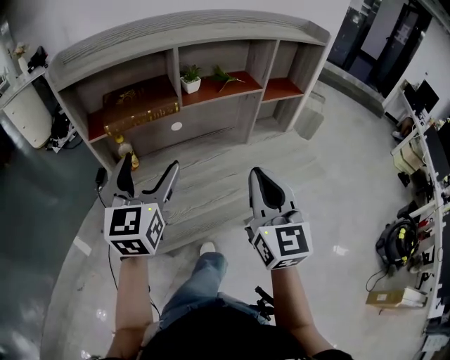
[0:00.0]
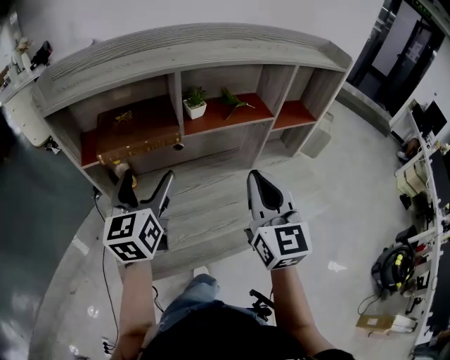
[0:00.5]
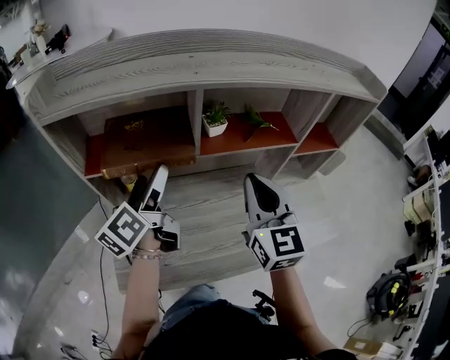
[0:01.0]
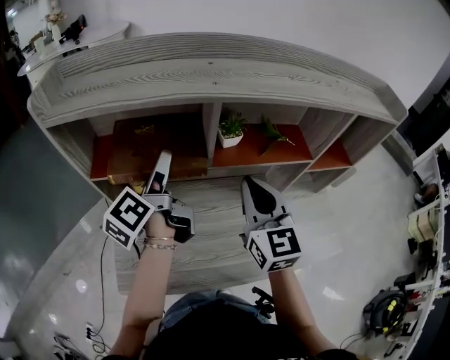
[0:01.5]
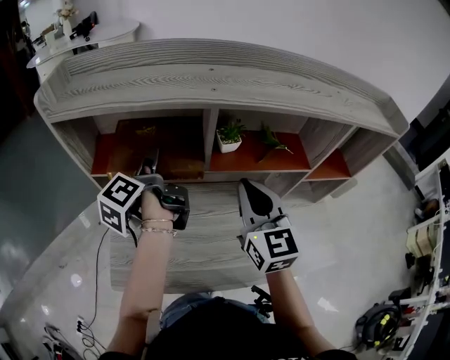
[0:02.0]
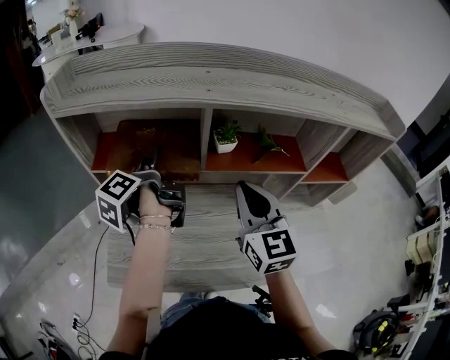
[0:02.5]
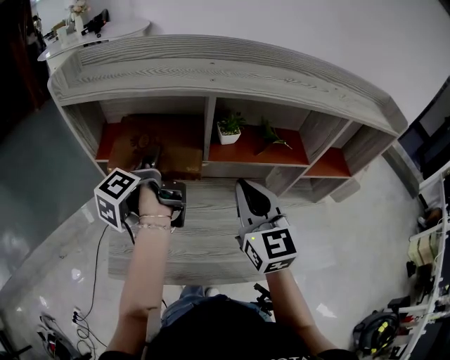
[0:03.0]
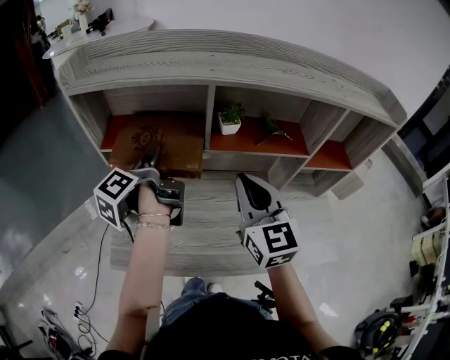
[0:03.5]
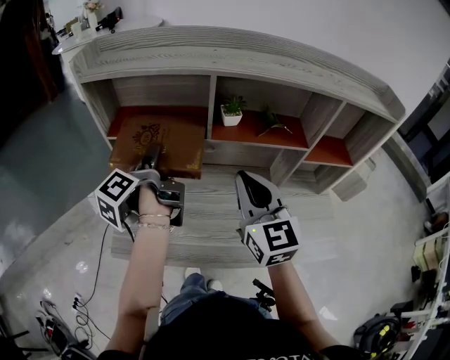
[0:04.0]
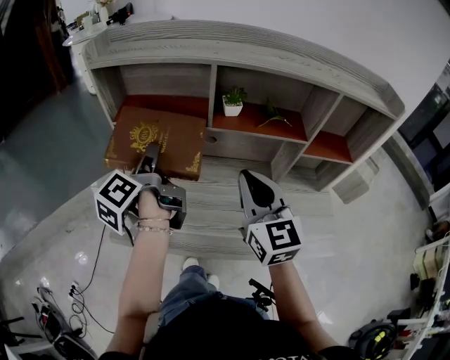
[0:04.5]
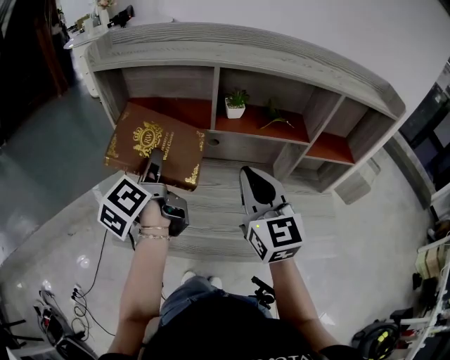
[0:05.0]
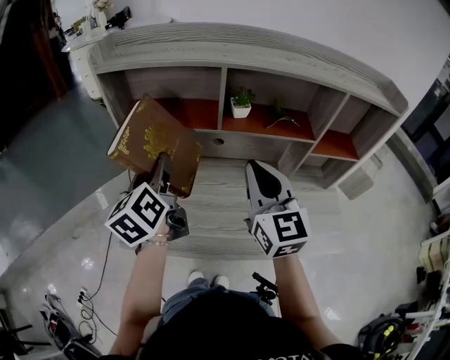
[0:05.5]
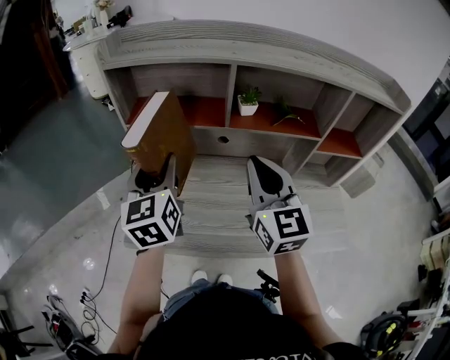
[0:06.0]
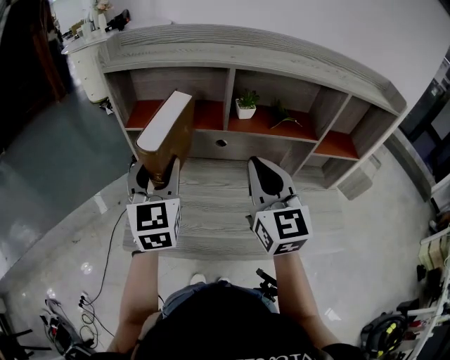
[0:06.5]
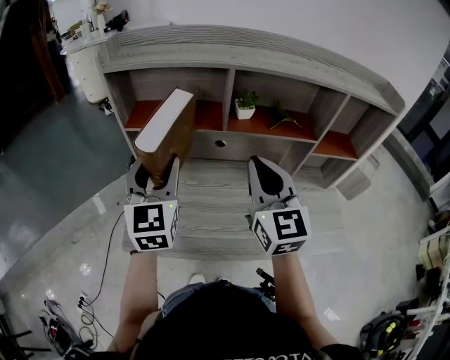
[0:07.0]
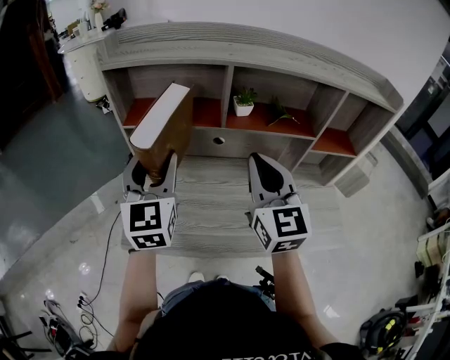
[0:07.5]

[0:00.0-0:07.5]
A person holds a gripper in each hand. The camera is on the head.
0:00.0 to 0:02.0: The left gripper moves some 25 cm, and rolls counterclockwise, seen from behind, by some 80 degrees. Meanwhile the right gripper ends up roughly 25 cm from where it was, and changes its angle by roughly 20 degrees.
0:02.0 to 0:04.0: Both grippers travel together backward, some 10 cm. The left gripper closes up.
0:04.0 to 0:05.5: The left gripper heads backward, covering about 5 cm, and rolls clockwise, seen from behind, by roughly 50 degrees.
0:05.5 to 0:07.5: The left gripper twists roughly 40 degrees clockwise, seen from behind.

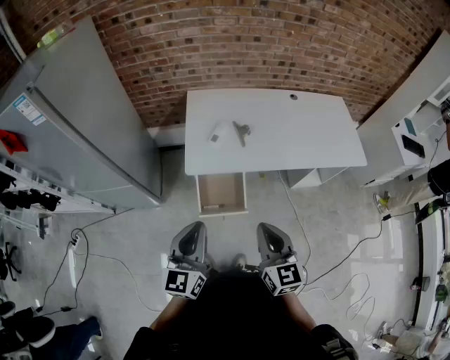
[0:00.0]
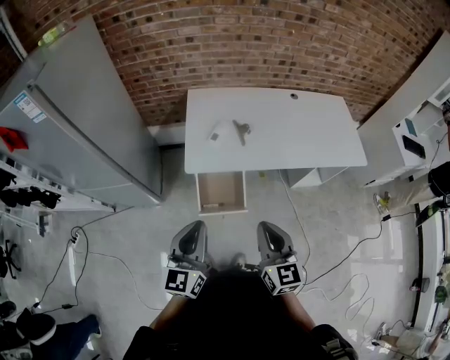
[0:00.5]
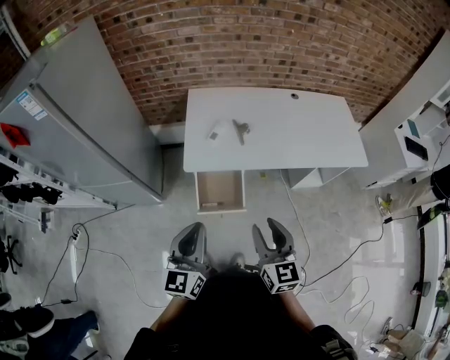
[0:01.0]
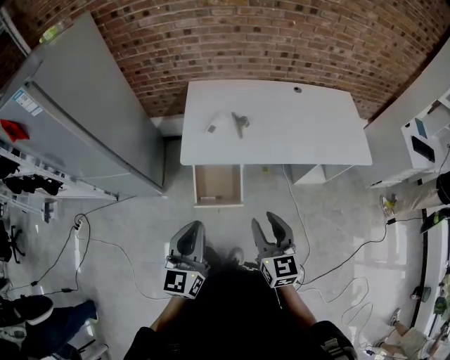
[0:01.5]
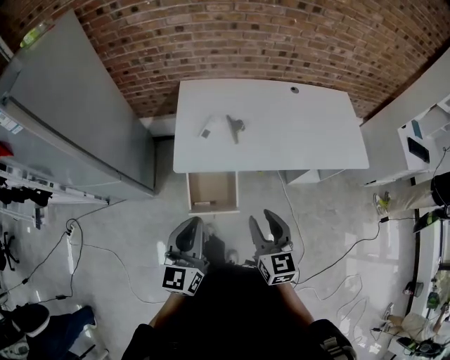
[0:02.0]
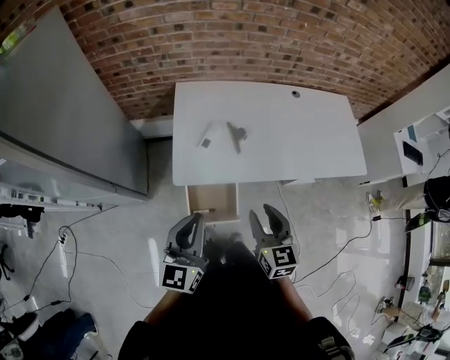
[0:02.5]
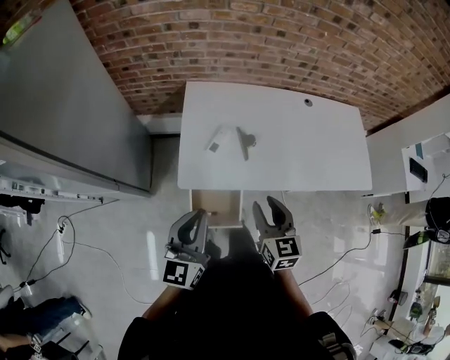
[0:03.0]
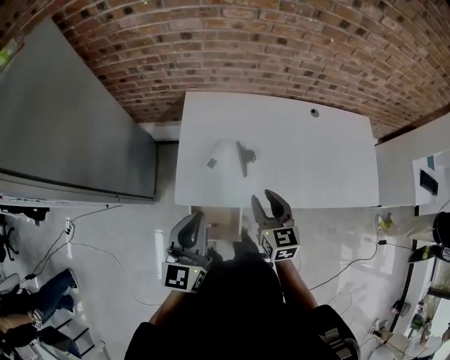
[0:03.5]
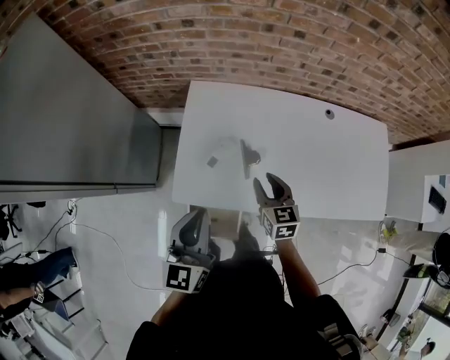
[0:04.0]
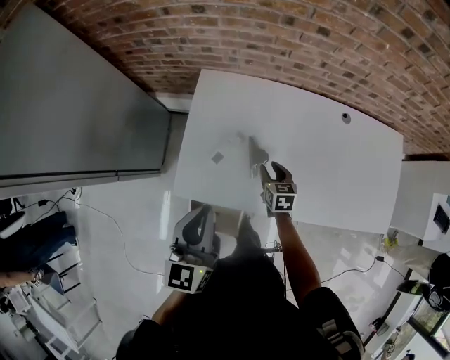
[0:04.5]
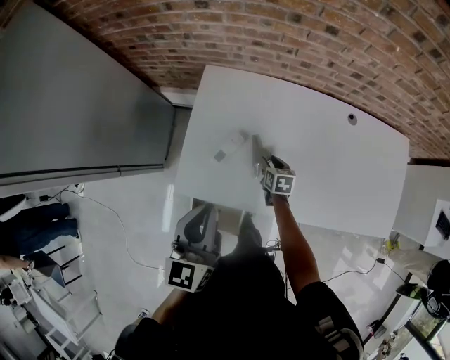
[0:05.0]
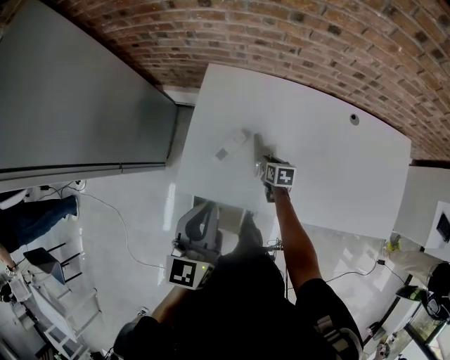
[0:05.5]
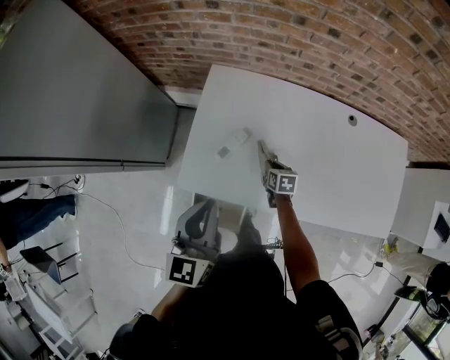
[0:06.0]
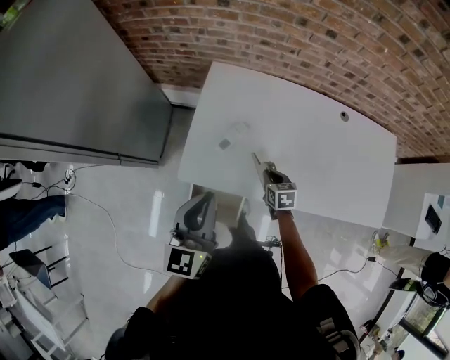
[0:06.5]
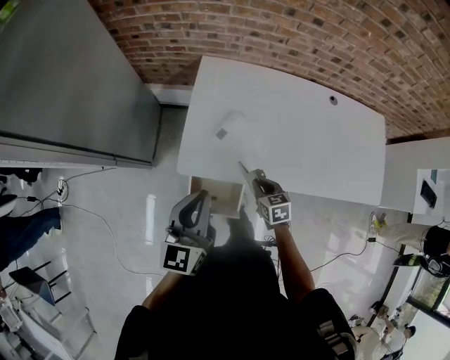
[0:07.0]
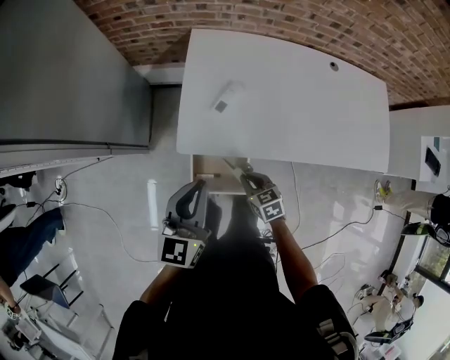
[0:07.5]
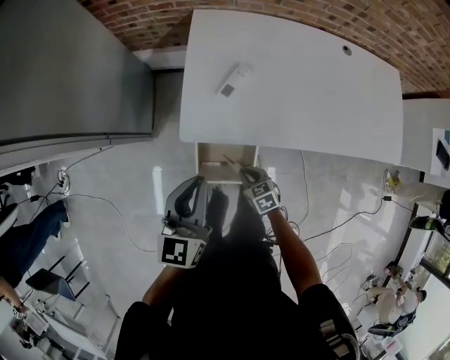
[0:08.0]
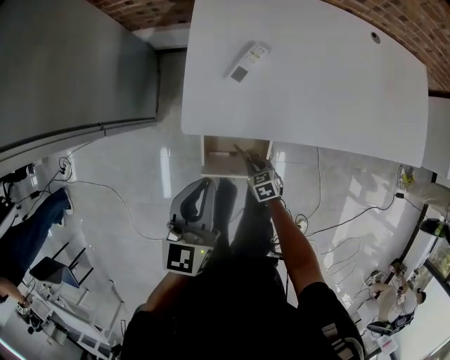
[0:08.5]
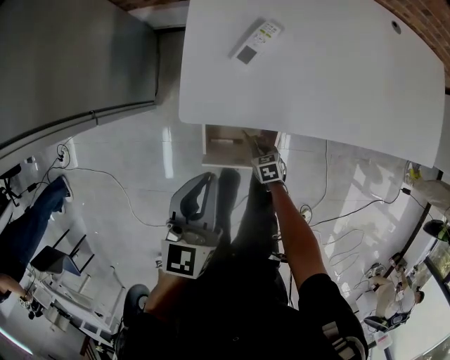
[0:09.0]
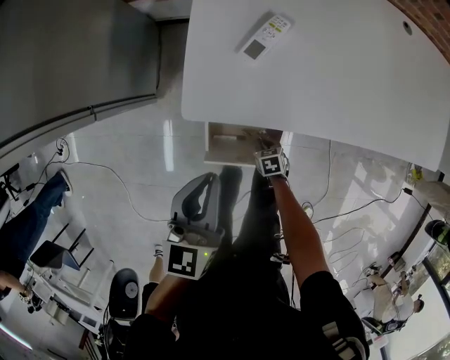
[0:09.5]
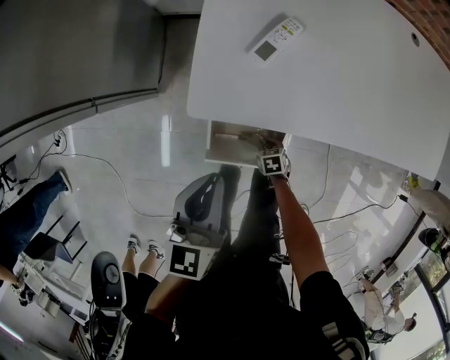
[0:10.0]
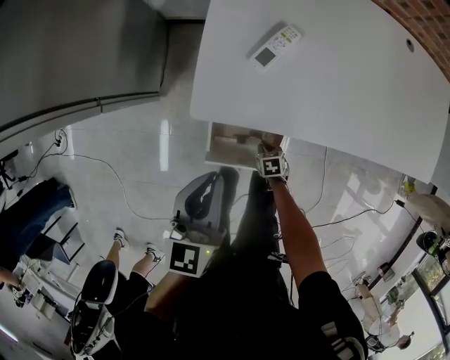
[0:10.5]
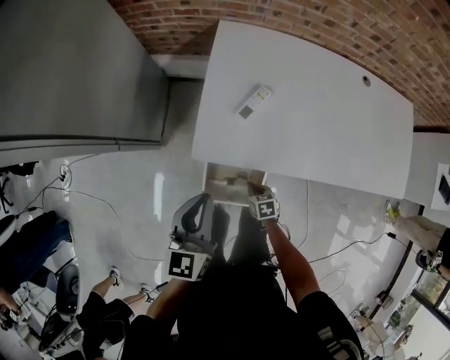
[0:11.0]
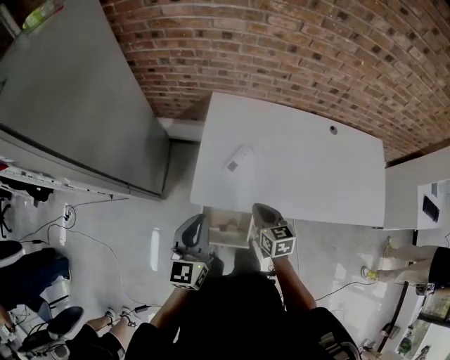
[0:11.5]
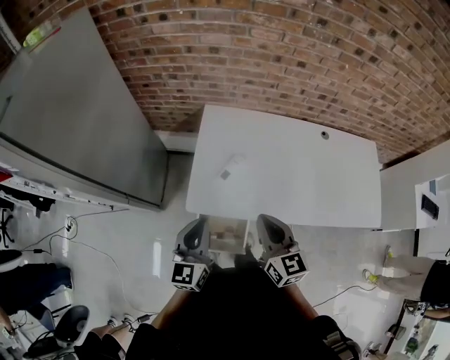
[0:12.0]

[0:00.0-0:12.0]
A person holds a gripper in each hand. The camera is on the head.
0:00.0 to 0:02.0: The left gripper heads to the right and forward, covering approximately 5 cm. The right gripper is displaced forward and to the right by about 10 cm, and opens up.
0:02.0 to 0:04.0: Both grippers move forward, about 30 cm.
0:04.0 to 0:06.0: The right gripper heads downward, covering about 20 cm, turns by some 30 degrees, and closes up.
0:06.0 to 0:08.0: The left gripper goes some 15 cm to the left, backward and downward. The right gripper is displaced backward and to the left by approximately 30 cm, and changes its angle by roughly 20 degrees.
0:08.0 to 0:10.0: The right gripper heads downward, covering some 25 cm, and swivels approximately 20 degrees; the left gripper is displaced downward by about 15 cm.
0:10.0 to 0:12.0: The right gripper goes roughly 60 cm upward, and angles its fingers upward, by some 60 degrees, while the left gripper shifts roughly 20 cm upward.

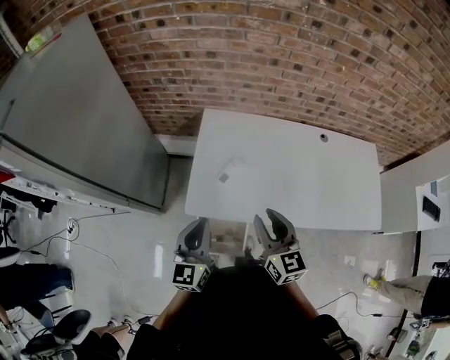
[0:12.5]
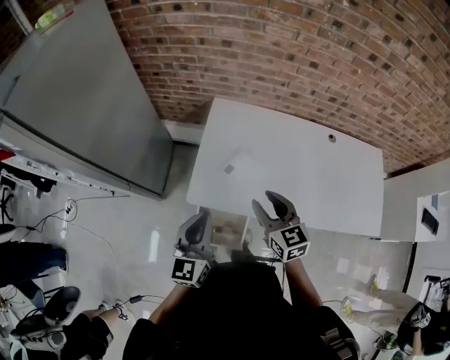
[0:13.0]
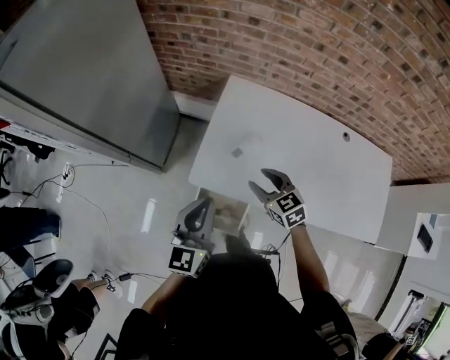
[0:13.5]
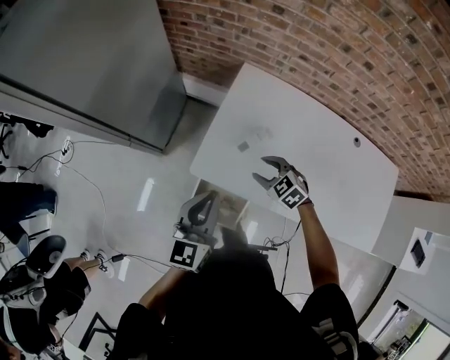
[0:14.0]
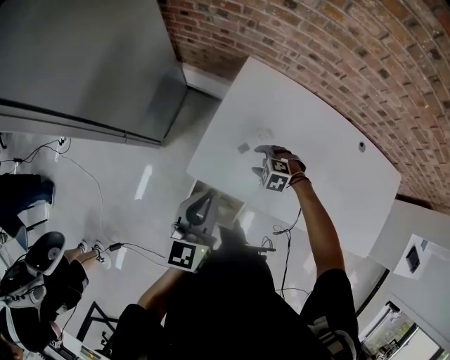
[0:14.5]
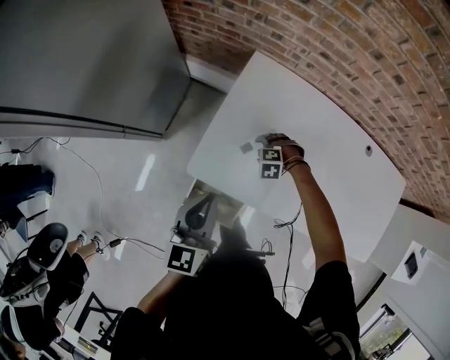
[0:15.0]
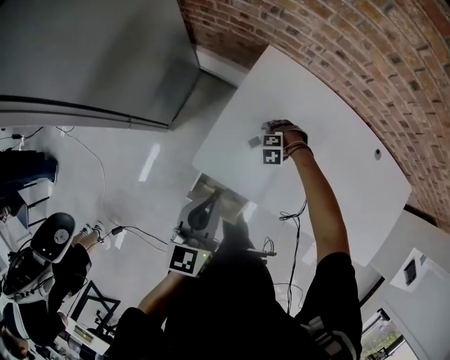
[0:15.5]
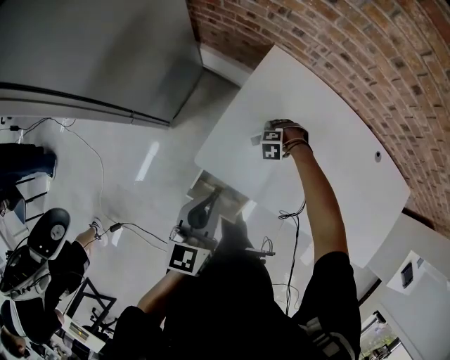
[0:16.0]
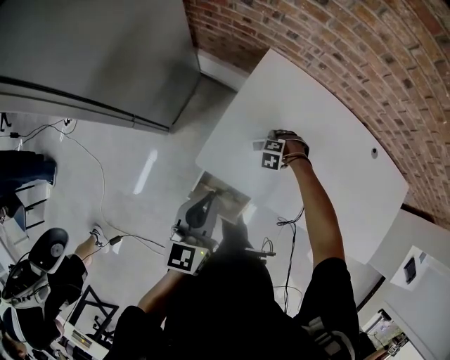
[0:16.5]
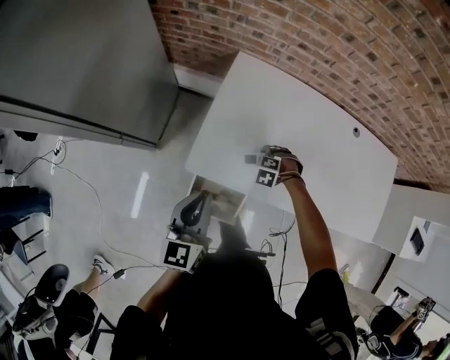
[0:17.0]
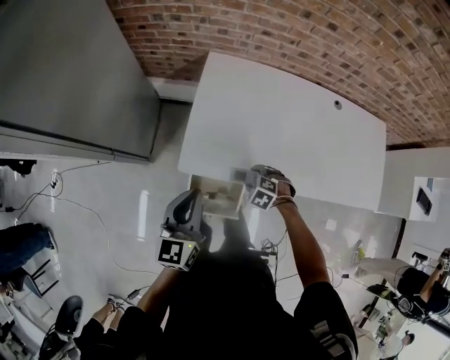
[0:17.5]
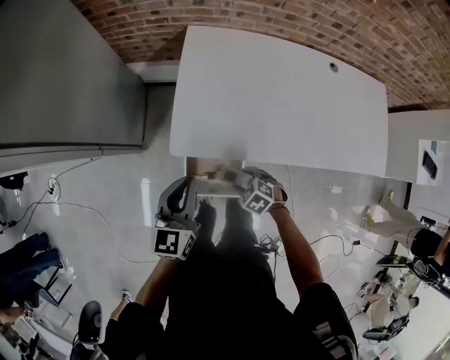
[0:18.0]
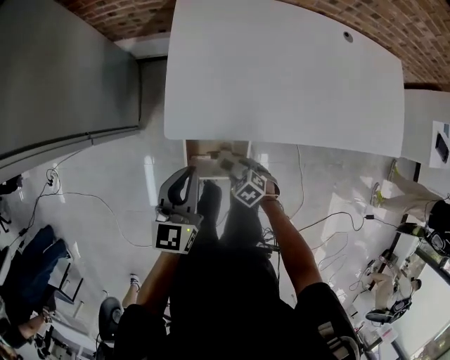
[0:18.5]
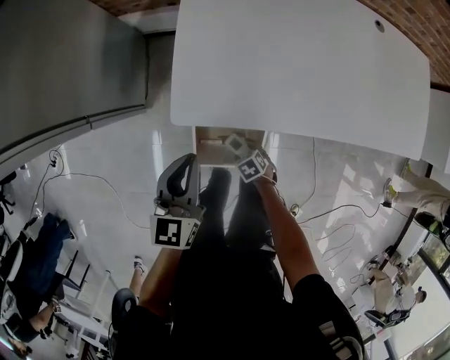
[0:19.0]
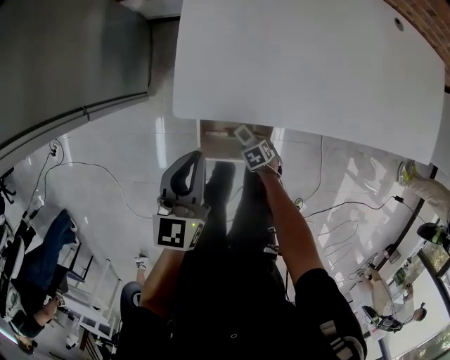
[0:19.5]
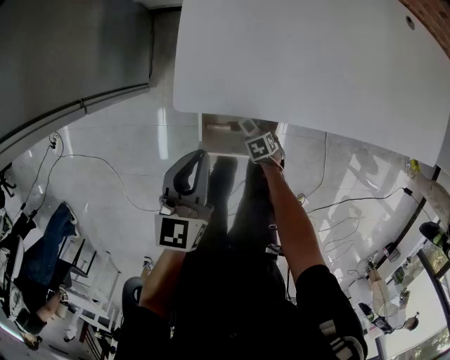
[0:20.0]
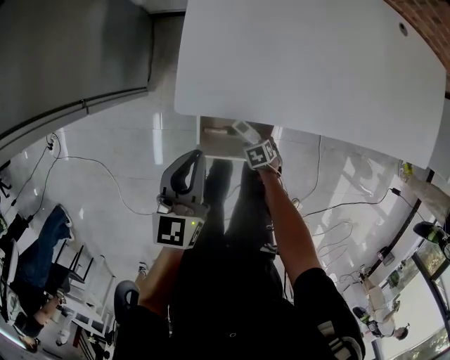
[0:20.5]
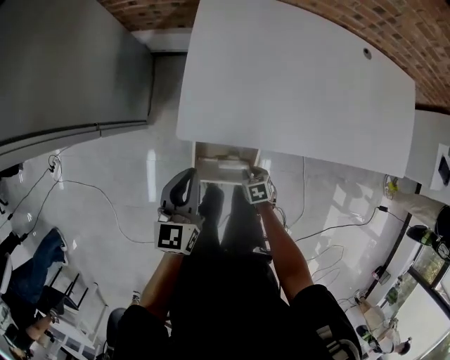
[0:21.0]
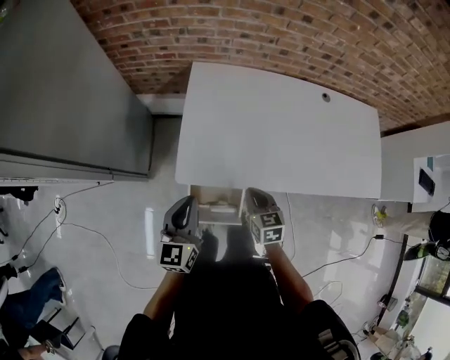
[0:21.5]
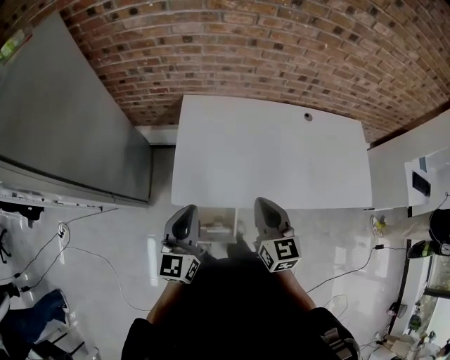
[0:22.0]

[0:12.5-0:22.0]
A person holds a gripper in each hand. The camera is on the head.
0:12.5 to 0:14.5: The right gripper moves downward, about 30 cm, points its fingers some 60 degrees further downward, and opens; the left gripper shifts by approximately 5 cm.
0:14.5 to 0:16.5: The right gripper travels downward by approximately 10 cm, and swivels approximately 20 degrees.
0:16.5 to 0:18.0: The right gripper ends up roughly 30 cm from where it was, and rotates around the line of its fingers by roughly 50 degrees, clockwise from behind; the left gripper rotates approximately 20 degrees.
0:18.0 to 0:20.0: The left gripper goes some 15 cm downward. Meanwhile the right gripper shifts roughly 30 cm downward, and changes its angle by some 40 degrees.
0:20.0 to 0:22.0: The left gripper moves upward, roughly 25 cm, and changes its angle by approximately 20 degrees. Meanwhile the right gripper heads upward, covering about 60 cm, tips its fingers upward by some 60 degrees, and closes up.
